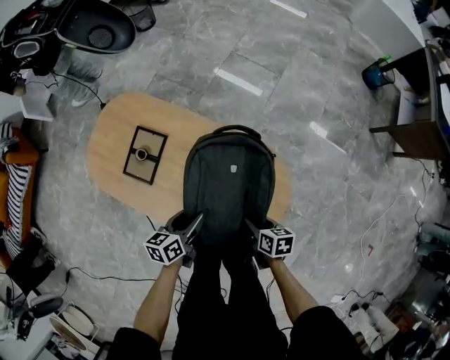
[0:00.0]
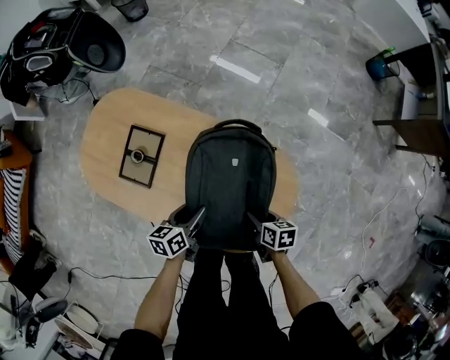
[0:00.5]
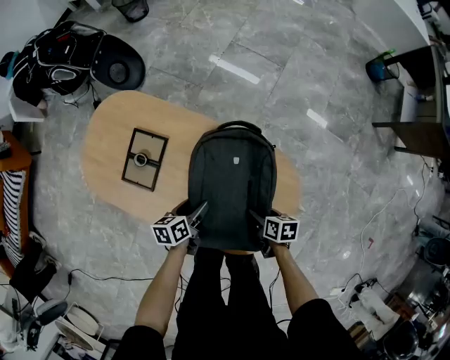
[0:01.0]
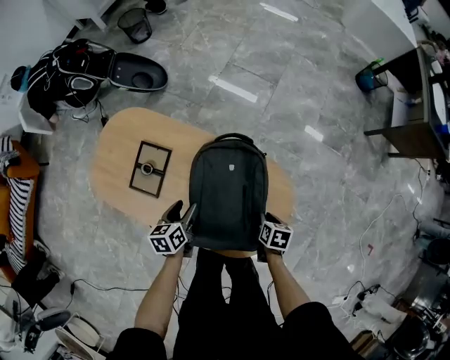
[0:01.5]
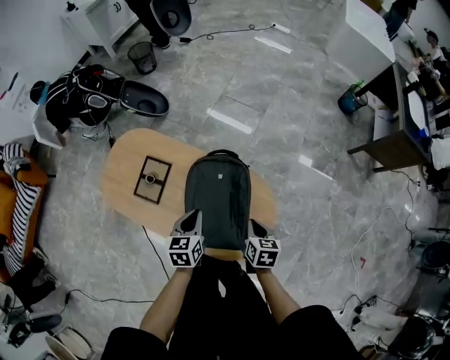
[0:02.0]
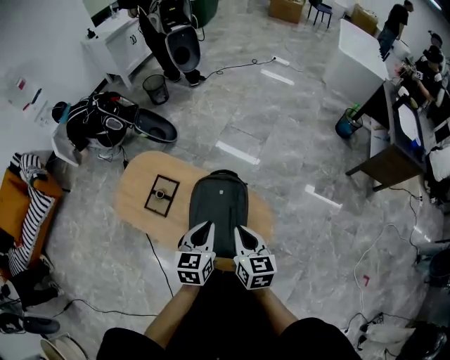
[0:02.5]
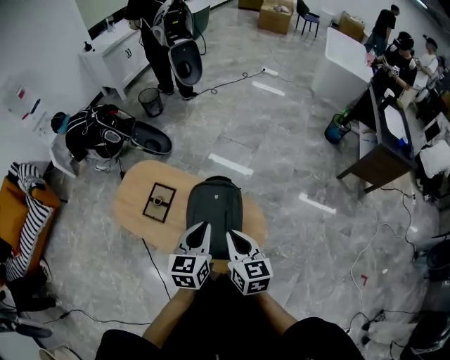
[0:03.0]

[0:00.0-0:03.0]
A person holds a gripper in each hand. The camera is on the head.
0:00.0 to 0:01.5: The left gripper heads forward and to the left, covering about 10 cm, and moves approximately 10 cm downward and comes back. The right gripper ends up approximately 5 cm from where it was, and rotates roughly 20 degrees.
0:01.5 to 0:03.0: Both grippers travel together upward, about 35 cm. The right gripper tilts its fingers about 50 degrees upward, and closes its fingers. Meanwhile the left gripper rotates roughly 30 degrees, and closes.

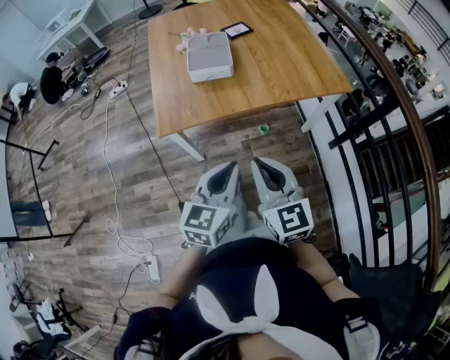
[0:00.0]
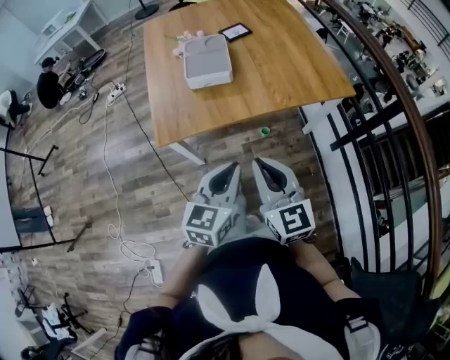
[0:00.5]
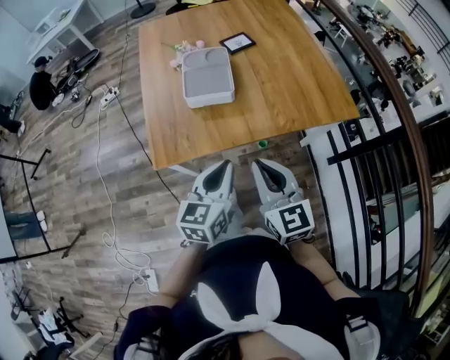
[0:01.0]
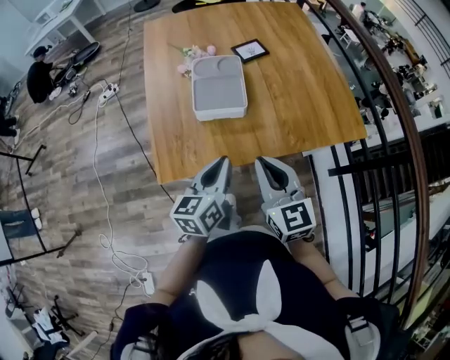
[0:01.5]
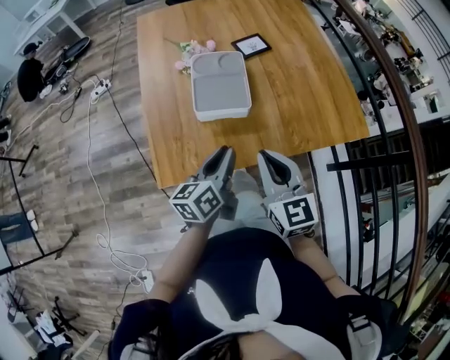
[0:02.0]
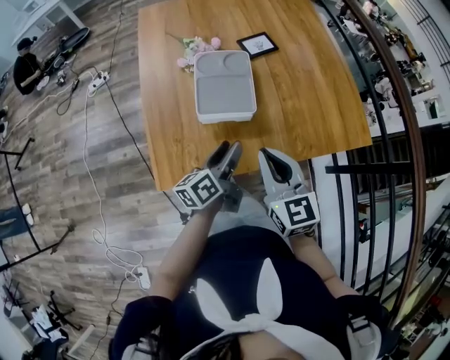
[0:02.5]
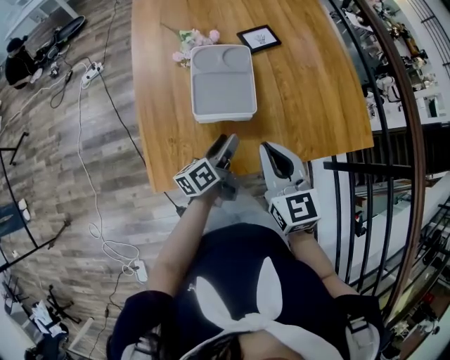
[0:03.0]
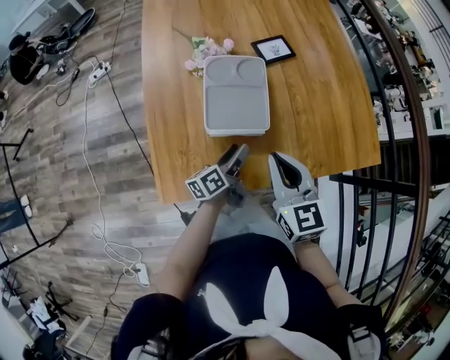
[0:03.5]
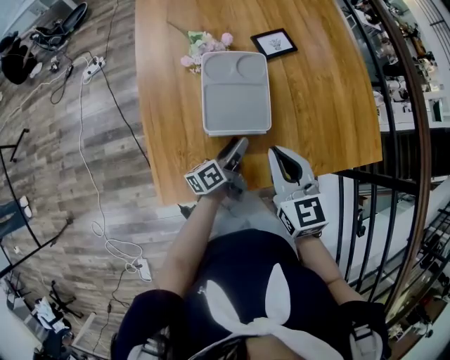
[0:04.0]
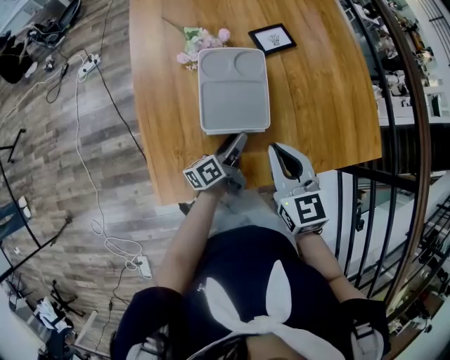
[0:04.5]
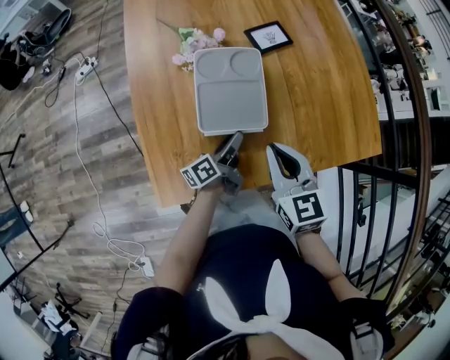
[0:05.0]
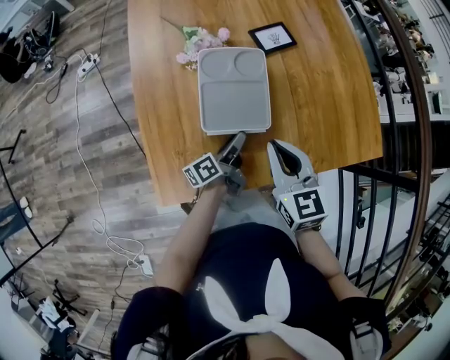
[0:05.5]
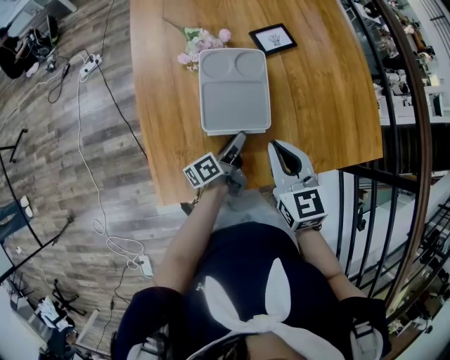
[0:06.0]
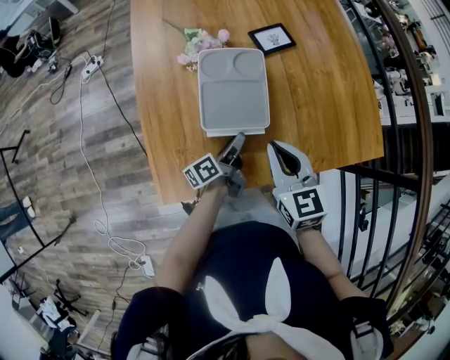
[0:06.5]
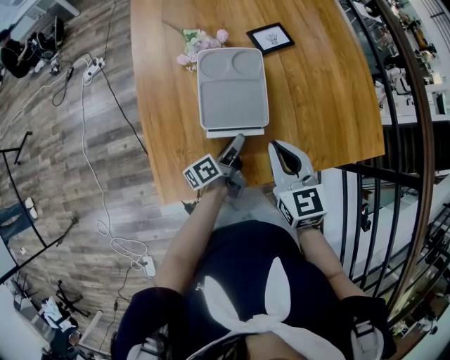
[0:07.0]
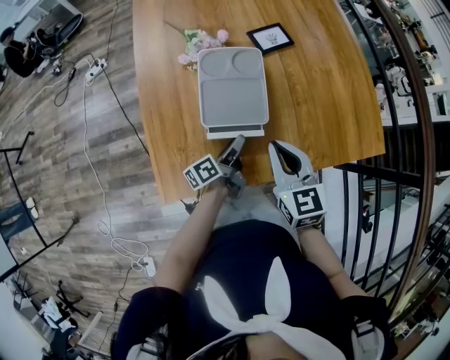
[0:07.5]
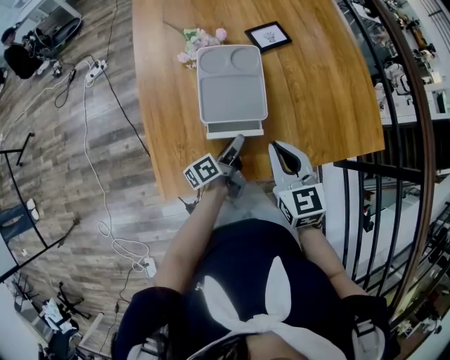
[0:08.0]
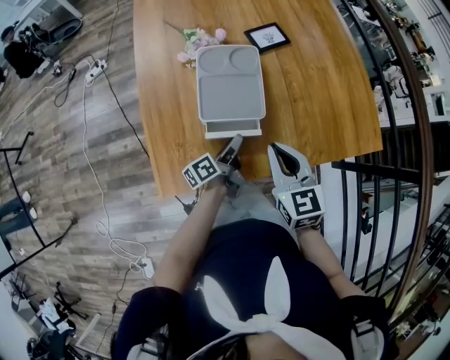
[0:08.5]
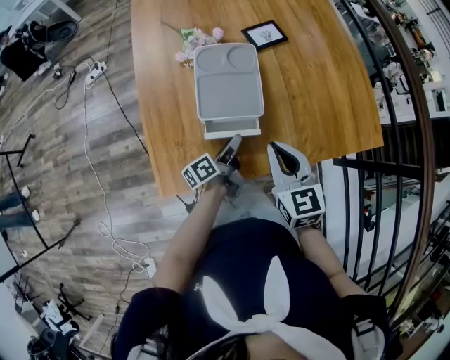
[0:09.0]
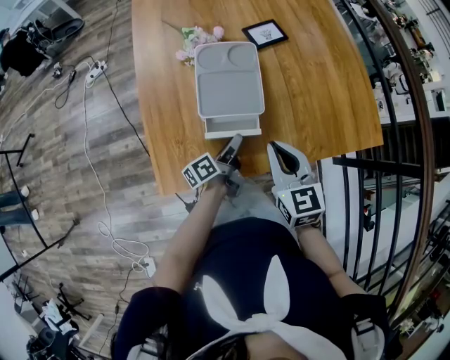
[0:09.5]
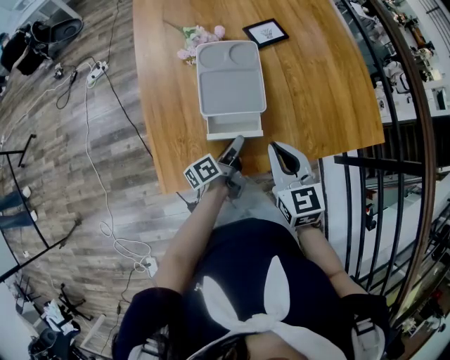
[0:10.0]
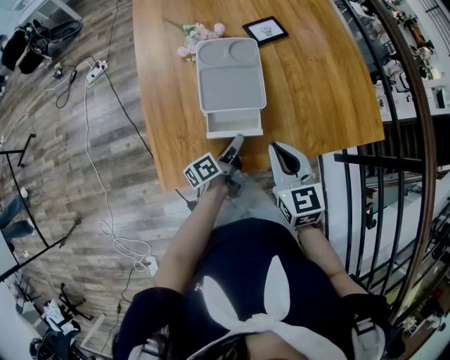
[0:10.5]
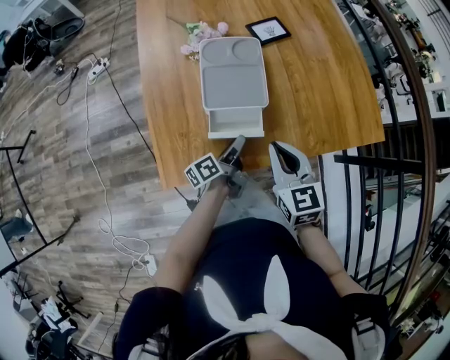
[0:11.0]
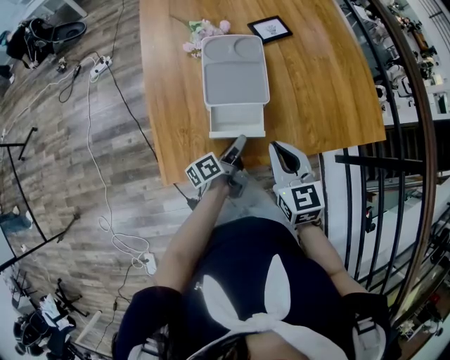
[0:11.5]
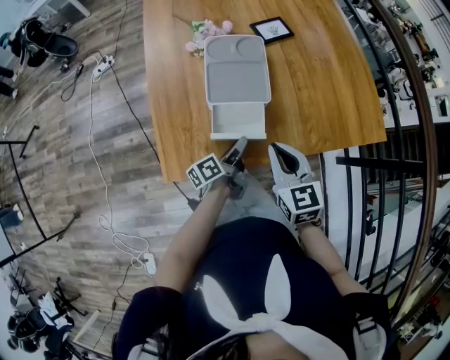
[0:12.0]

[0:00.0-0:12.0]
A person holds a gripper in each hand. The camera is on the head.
0:00.0 to 0:02.0: Both grippers move forward, roughly 30 cm. The left gripper rotates approximately 40 degrees.
0:02.0 to 0:04.0: The left gripper shifts roughly 20 cm downward and forward, rotates approximately 30 degrees, and opens; the right gripper goes approximately 15 cm forward.
0:04.0 to 0:08.0: The grippers stay close to where they were, moving slightly.
0:08.0 to 0:10.0: The grippers make only small movements.
0:10.0 to 0:12.0: The grippers make only small movements.

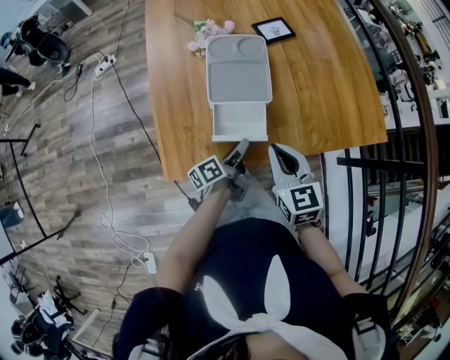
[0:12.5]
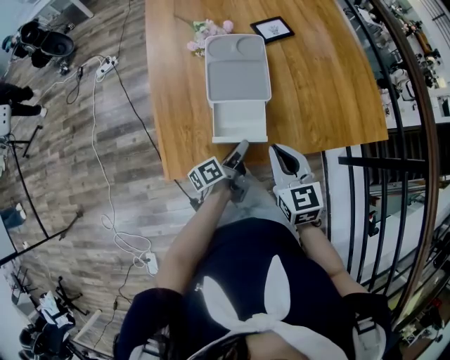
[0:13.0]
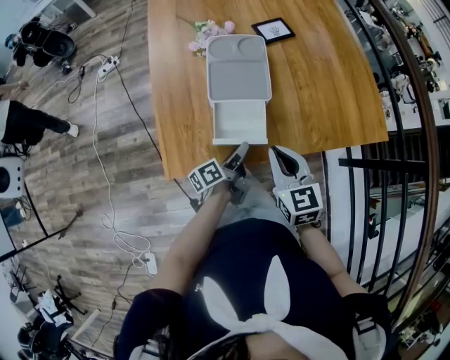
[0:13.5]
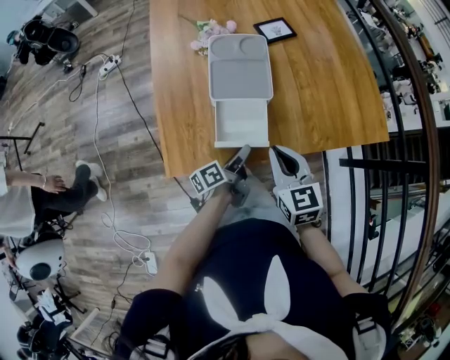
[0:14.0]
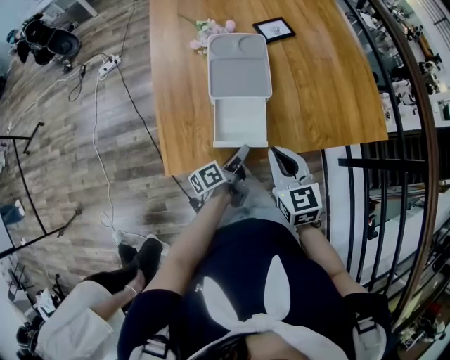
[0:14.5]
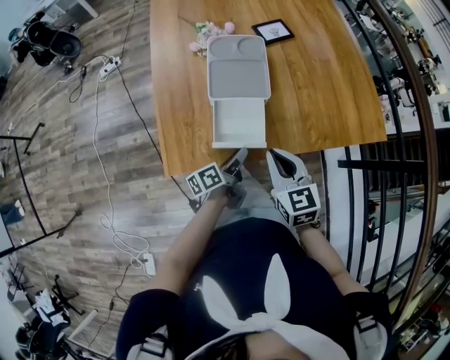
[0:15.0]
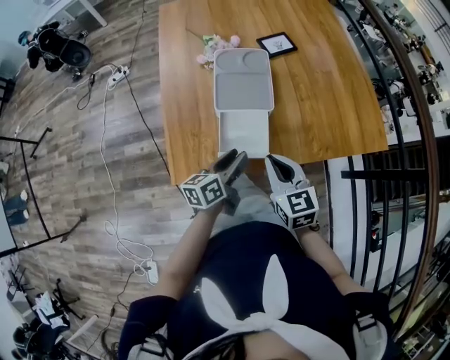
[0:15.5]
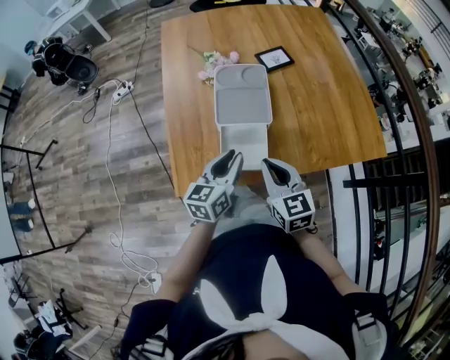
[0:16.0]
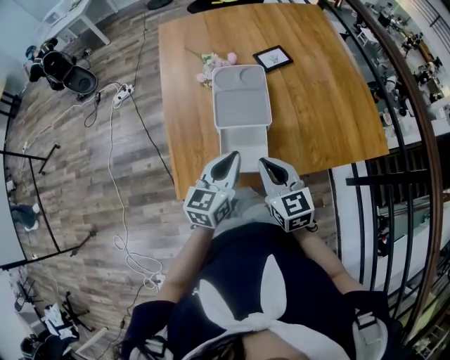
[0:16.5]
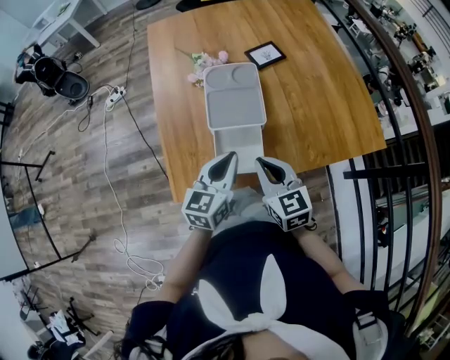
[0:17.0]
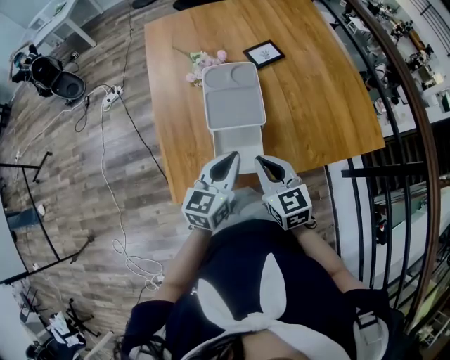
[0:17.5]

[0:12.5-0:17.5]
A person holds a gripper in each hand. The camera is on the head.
0:12.5 to 0:15.0: The grippers move only a little.
0:15.0 to 0:17.5: The left gripper shifts about 15 cm upward, twists some 60 degrees clockwise, seen from behind, and closes, while the right gripper changes place by about 5 cm.

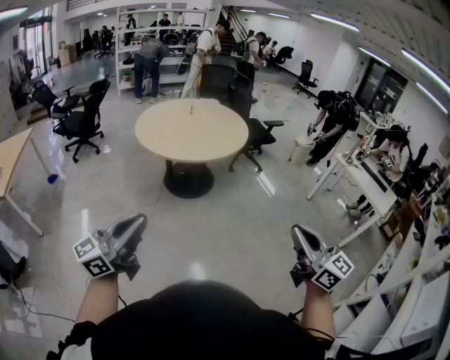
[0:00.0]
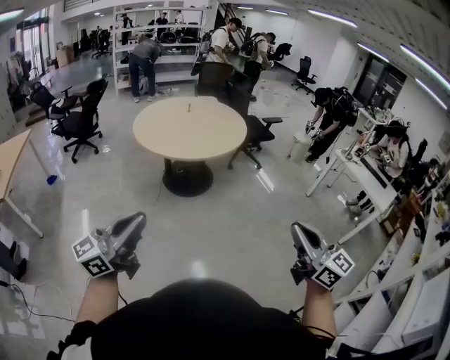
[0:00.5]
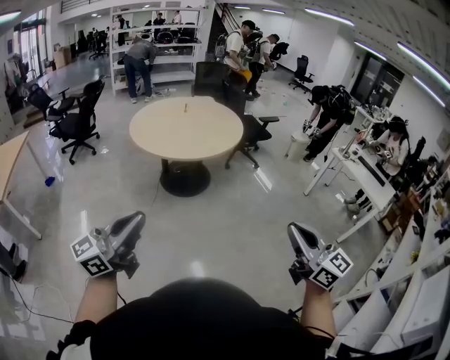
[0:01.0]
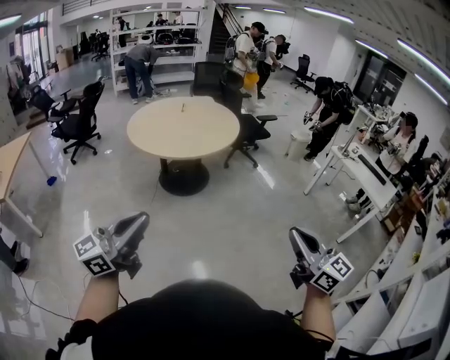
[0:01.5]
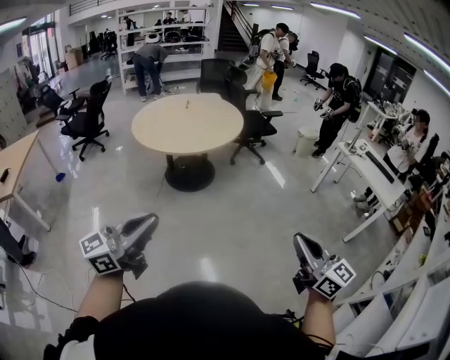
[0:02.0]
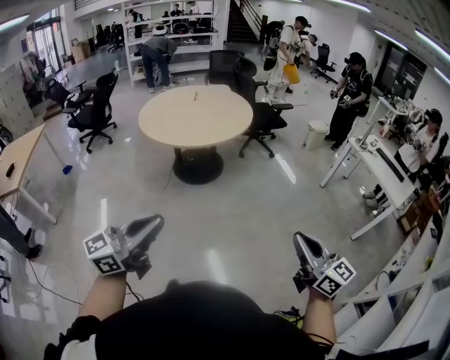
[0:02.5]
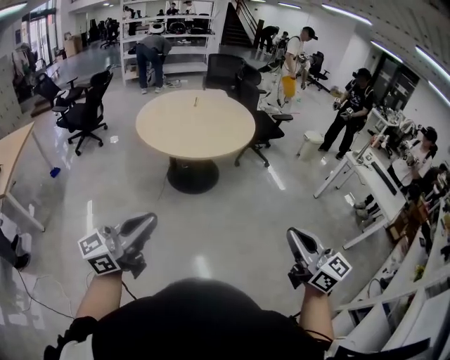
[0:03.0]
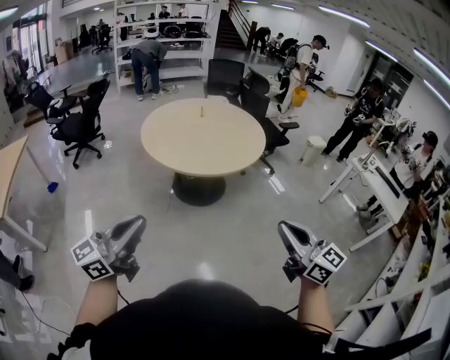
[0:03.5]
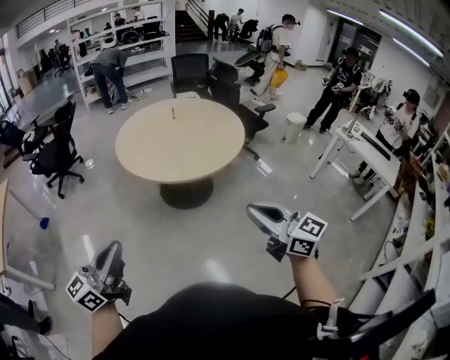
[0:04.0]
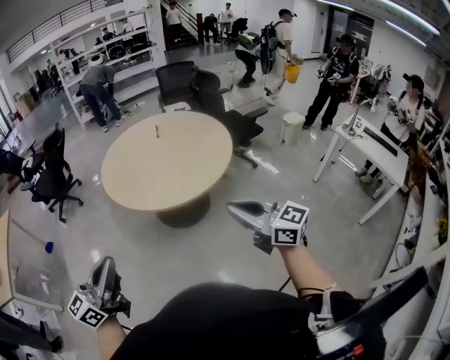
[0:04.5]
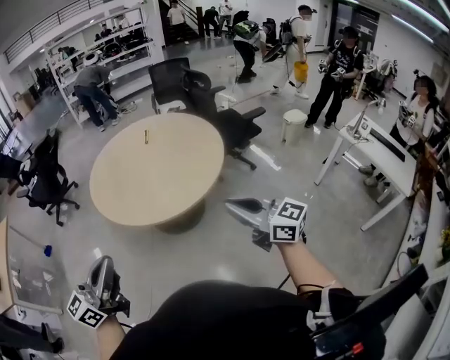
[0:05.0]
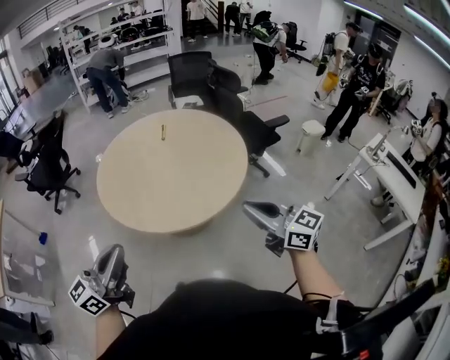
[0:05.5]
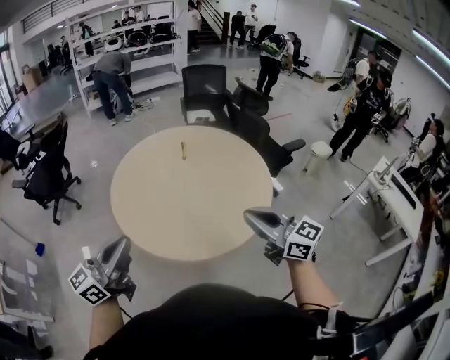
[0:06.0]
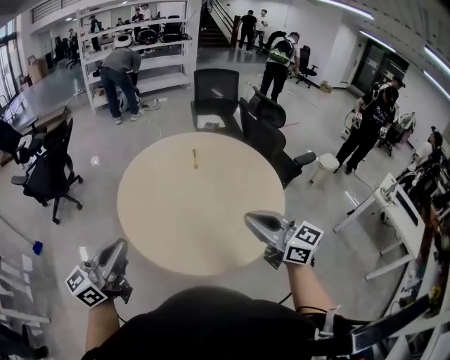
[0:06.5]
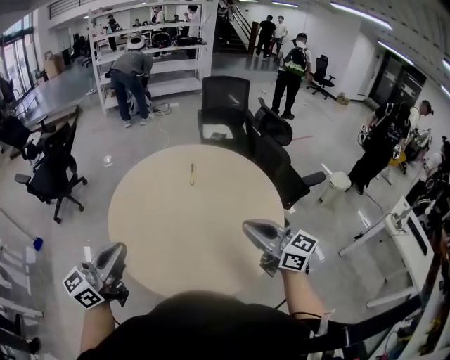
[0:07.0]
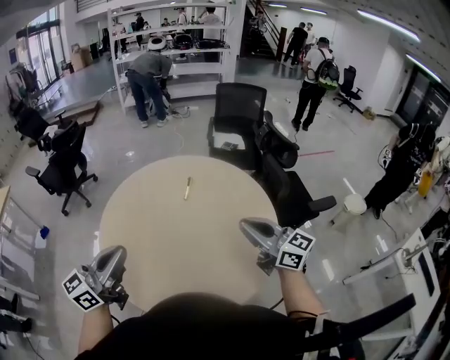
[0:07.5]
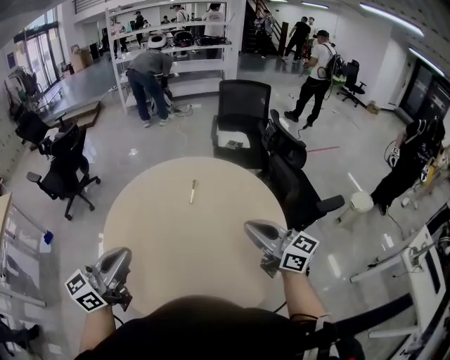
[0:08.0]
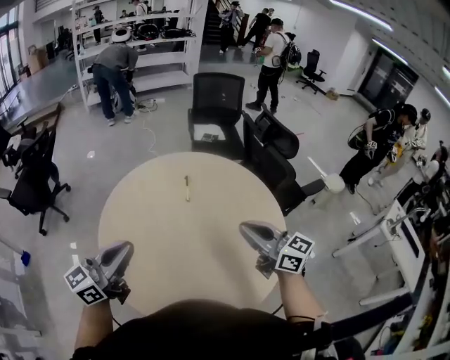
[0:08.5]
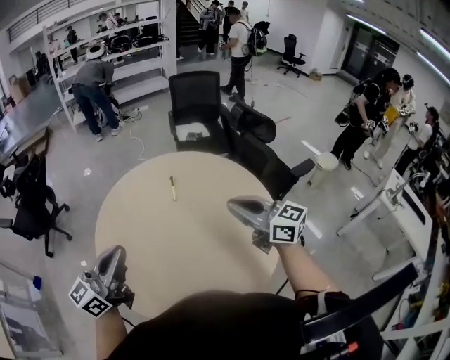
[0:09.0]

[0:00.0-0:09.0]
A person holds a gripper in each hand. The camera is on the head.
0:00.0 to 0:02.0: Both grippers travel together to the right, approximately 15 cm.
0:02.0 to 0:04.5: The grippers both shift forward and to the left by about 40 cm.
0:04.5 to 0:07.0: Both grippers are carried forward, some 50 cm.
0:07.0 to 0:09.0: Both grippers move forward, approximately 15 cm.
